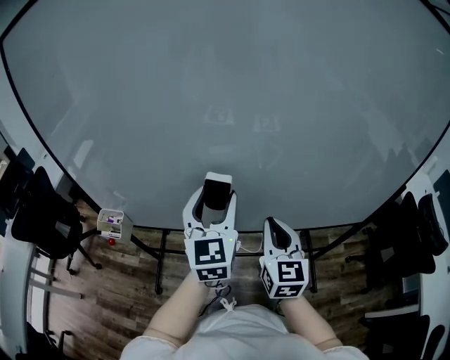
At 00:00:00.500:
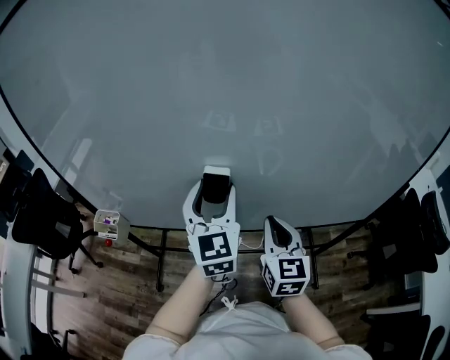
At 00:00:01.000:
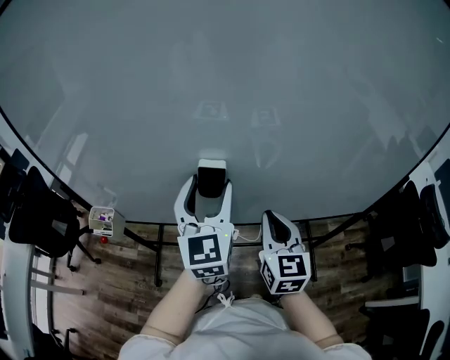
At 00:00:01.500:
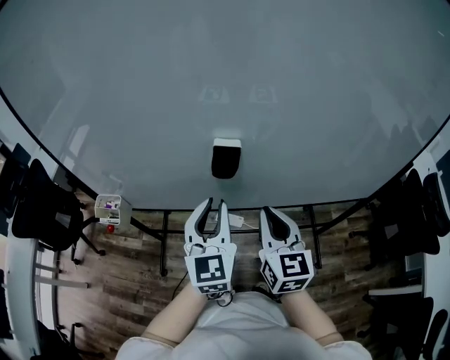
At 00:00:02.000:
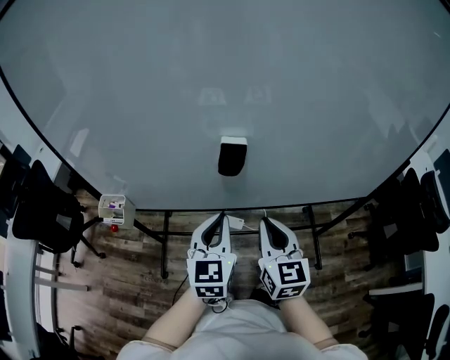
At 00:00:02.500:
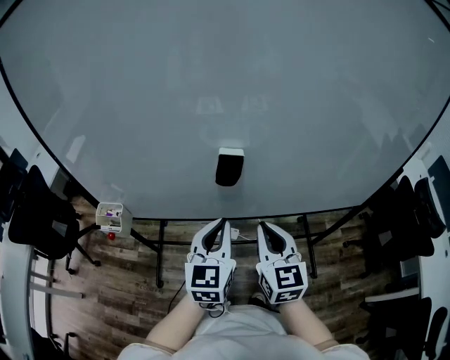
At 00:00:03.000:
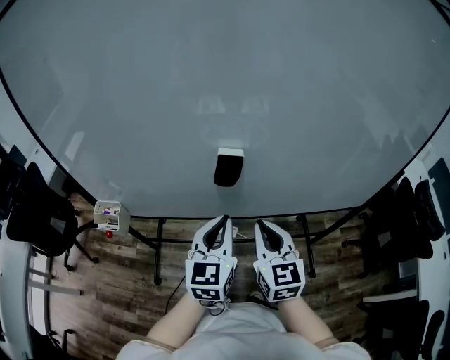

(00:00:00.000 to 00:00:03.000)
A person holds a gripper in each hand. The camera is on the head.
00:00:00.000 - 00:00:01.500: The left gripper goes approximately 10 cm downward and backward, and closes.
00:00:01.500 - 00:00:03.000: There are only small adjustments of the grippers.

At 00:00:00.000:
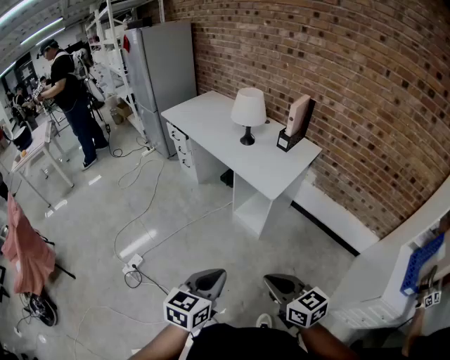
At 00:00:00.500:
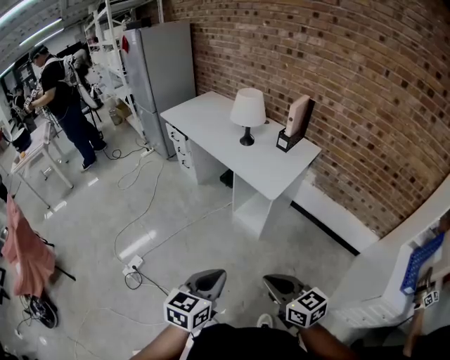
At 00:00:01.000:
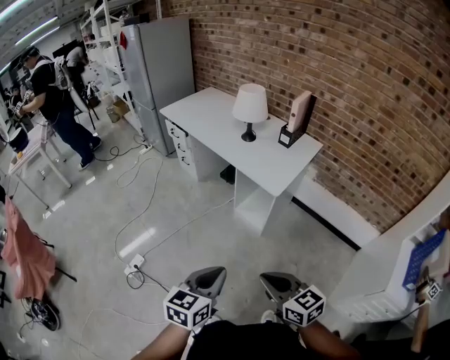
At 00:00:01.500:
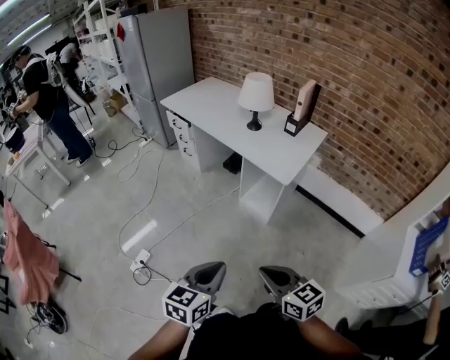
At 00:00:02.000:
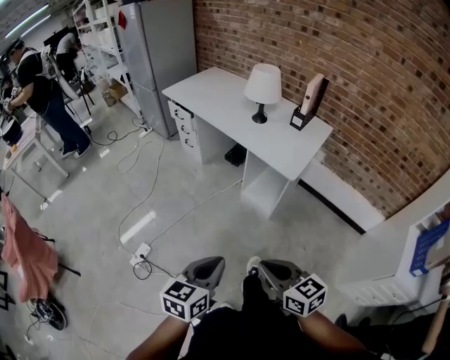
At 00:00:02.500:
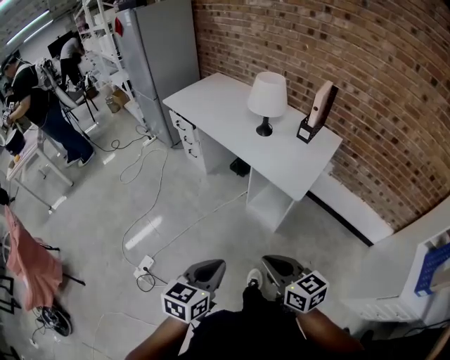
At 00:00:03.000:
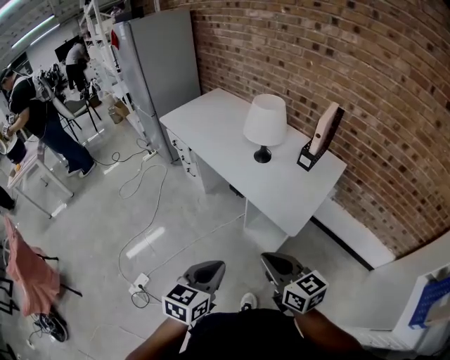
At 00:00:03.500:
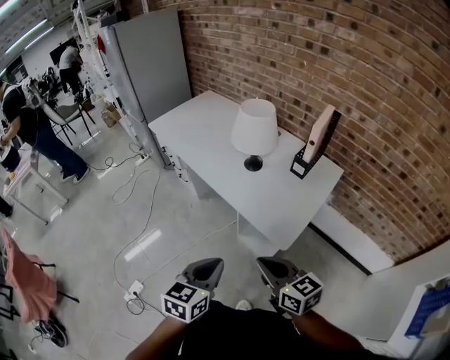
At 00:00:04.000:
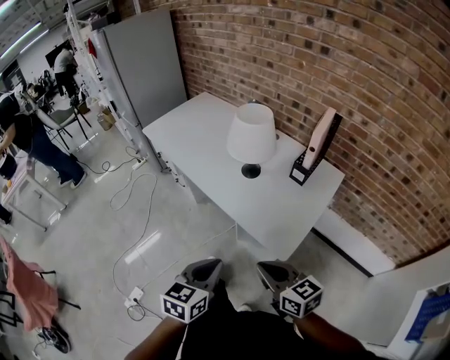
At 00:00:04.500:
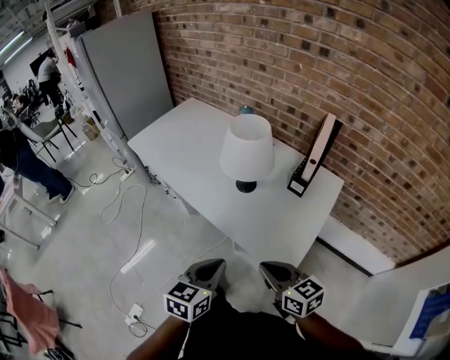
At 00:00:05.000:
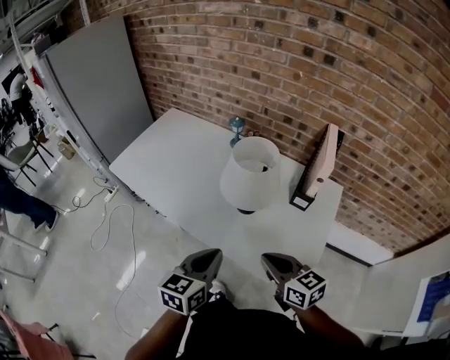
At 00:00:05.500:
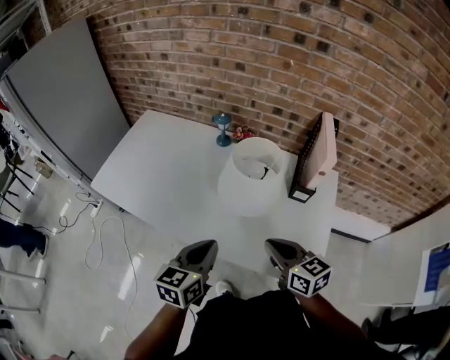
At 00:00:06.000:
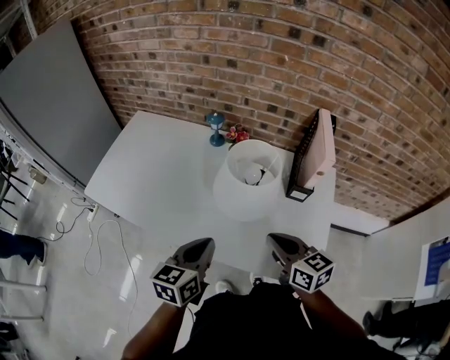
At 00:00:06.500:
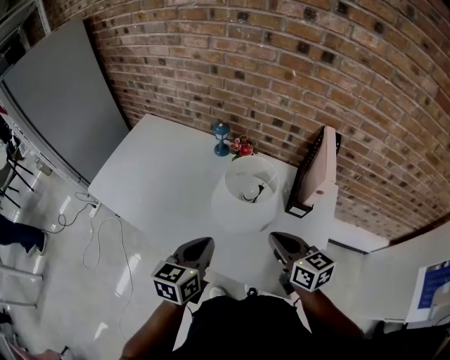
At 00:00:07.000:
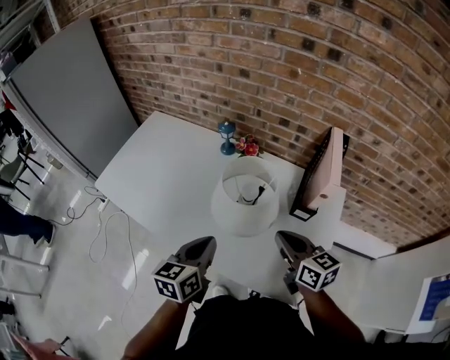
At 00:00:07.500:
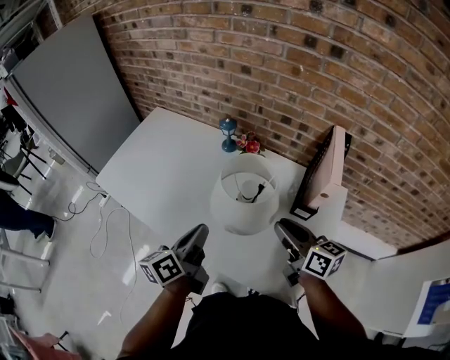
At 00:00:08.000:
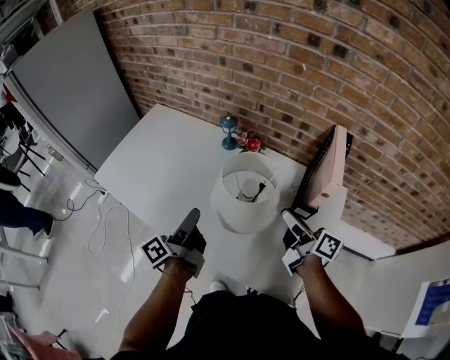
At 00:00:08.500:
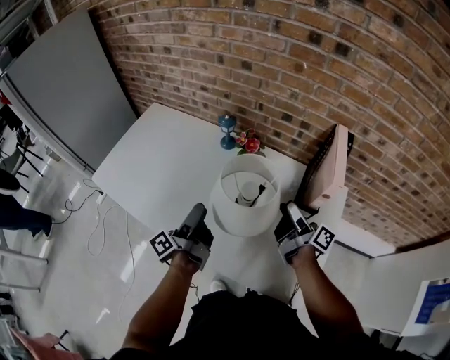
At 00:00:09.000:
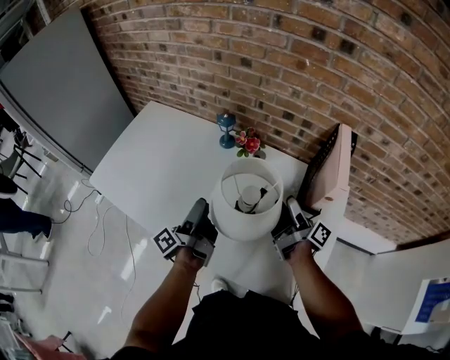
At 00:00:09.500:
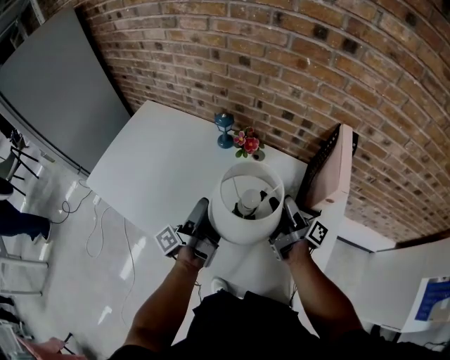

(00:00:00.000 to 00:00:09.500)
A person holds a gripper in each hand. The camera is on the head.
00:00:00.000 - 00:00:02.000: Both grippers move to the left, approximately 10 cm.
00:00:02.000 - 00:00:04.000: Both grippers travel together forward, some 35 cm.
00:00:04.000 - 00:00:05.500: The grippers both shift forward by about 30 cm. The right gripper swivels approximately 30 degrees.
00:00:05.500 - 00:00:07.500: The left gripper goes about 10 cm forward, and swivels about 40 degrees; the right gripper is displaced forward and to the right by approximately 15 cm.
00:00:07.500 - 00:00:09.500: Both grippers move forward, about 10 cm. The right gripper rolls clockwise, seen from behind, by some 50 degrees, and opens up. The left gripper twists some 40 degrees counterclockwise, seen from behind, and opens up.

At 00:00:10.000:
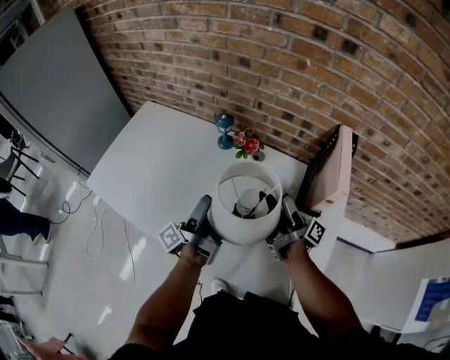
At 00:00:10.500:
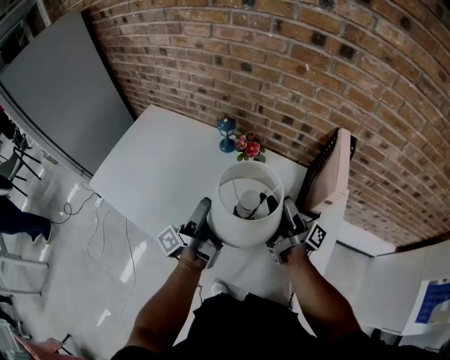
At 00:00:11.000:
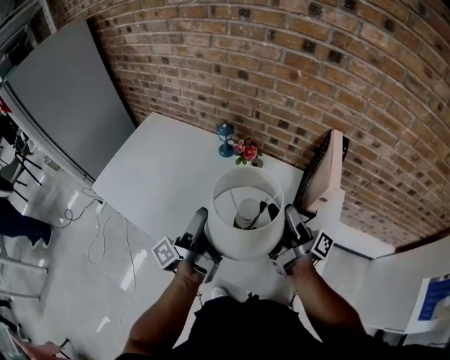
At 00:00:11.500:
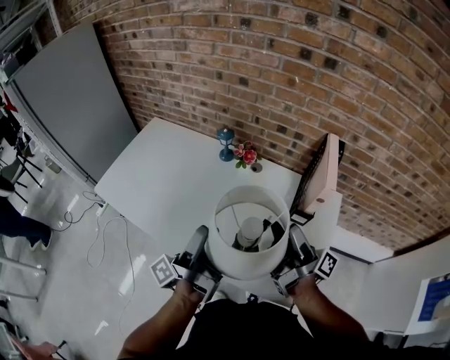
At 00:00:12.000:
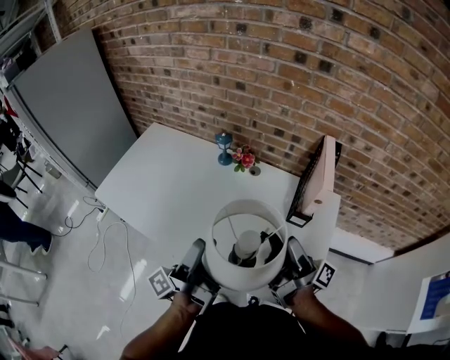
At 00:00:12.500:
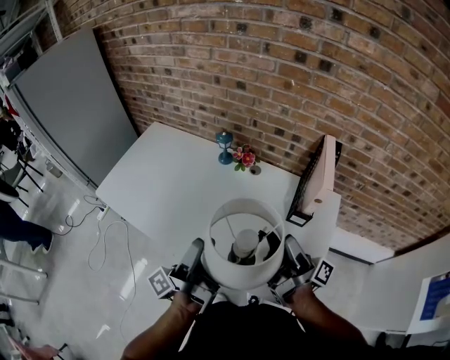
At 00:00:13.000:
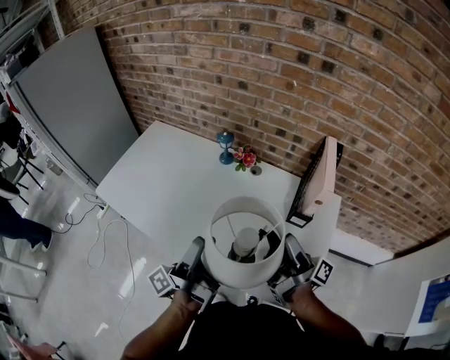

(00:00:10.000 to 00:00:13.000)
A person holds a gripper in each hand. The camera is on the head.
00:00:10.000 - 00:00:11.500: The grippers both shift backward and upward by some 15 cm.
00:00:11.500 - 00:00:13.000: The grippers stay close to where they were, moving slightly.

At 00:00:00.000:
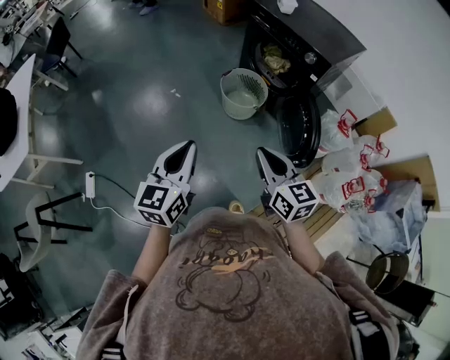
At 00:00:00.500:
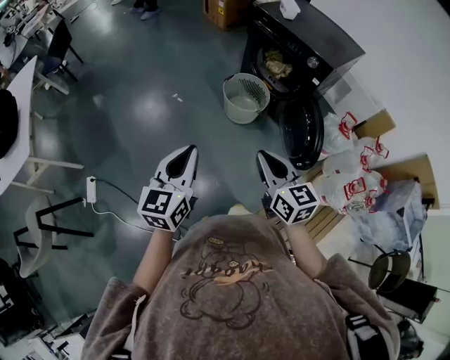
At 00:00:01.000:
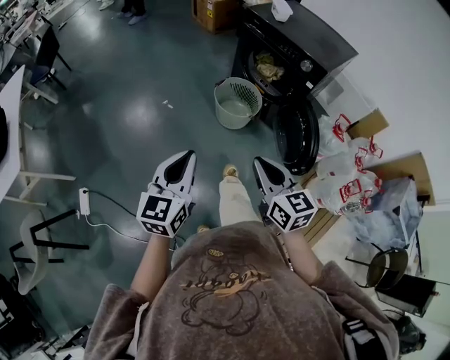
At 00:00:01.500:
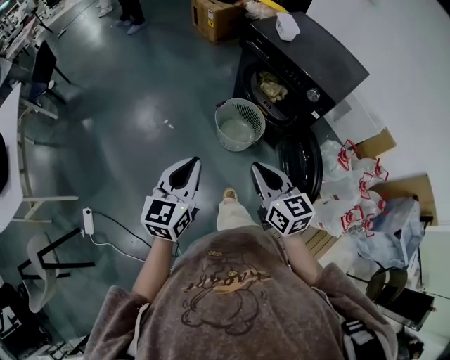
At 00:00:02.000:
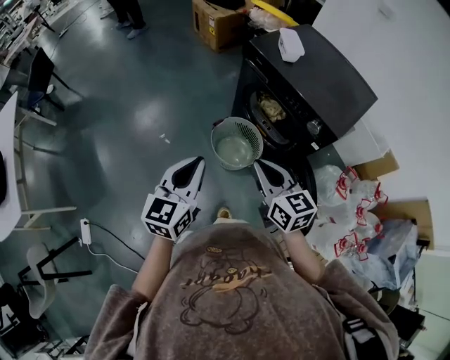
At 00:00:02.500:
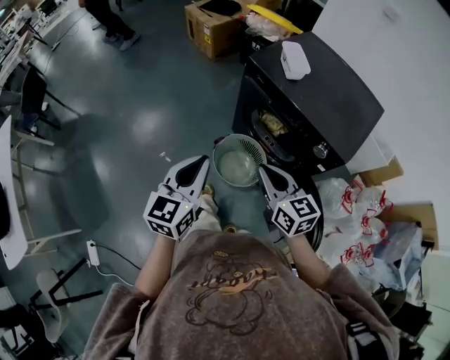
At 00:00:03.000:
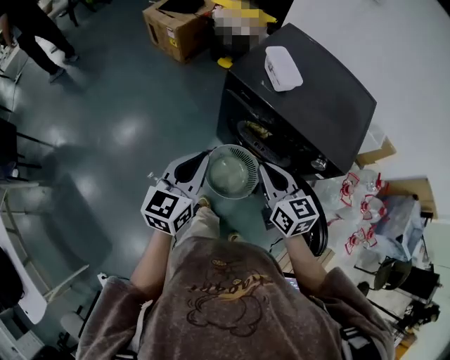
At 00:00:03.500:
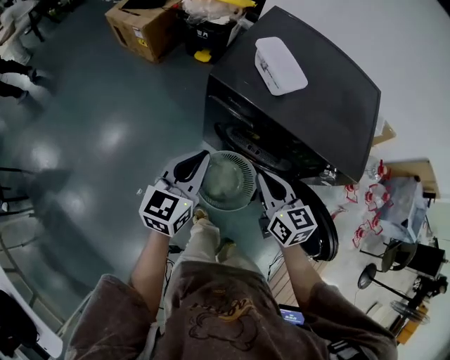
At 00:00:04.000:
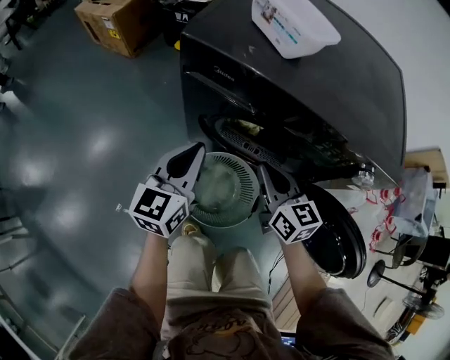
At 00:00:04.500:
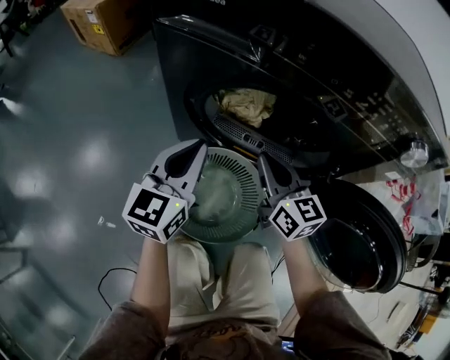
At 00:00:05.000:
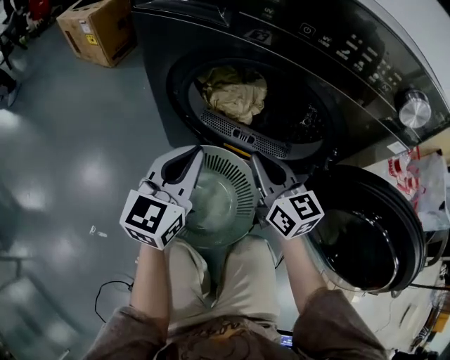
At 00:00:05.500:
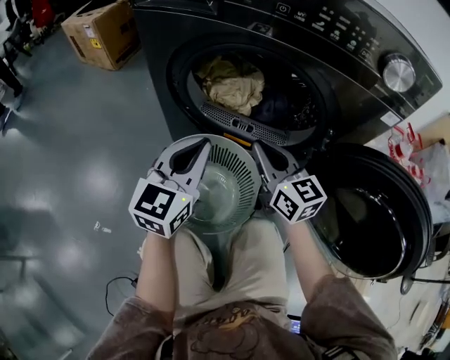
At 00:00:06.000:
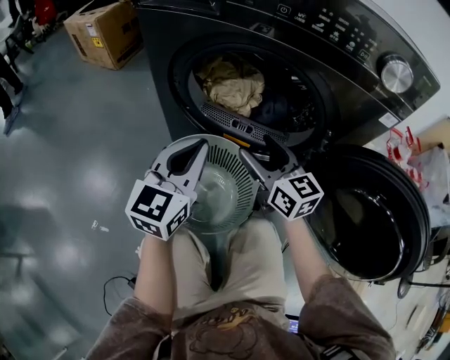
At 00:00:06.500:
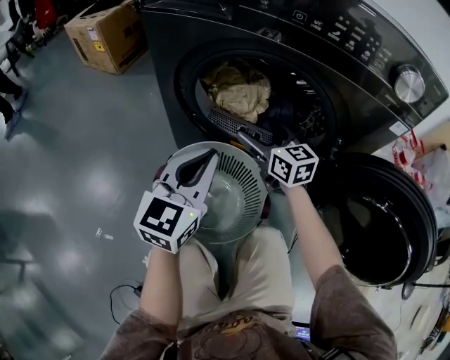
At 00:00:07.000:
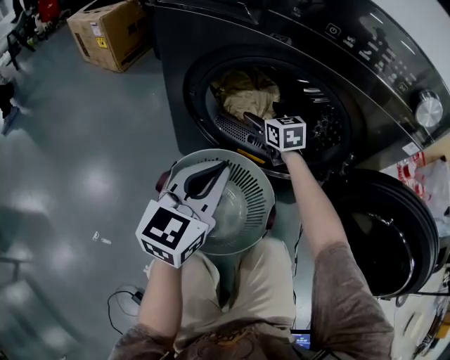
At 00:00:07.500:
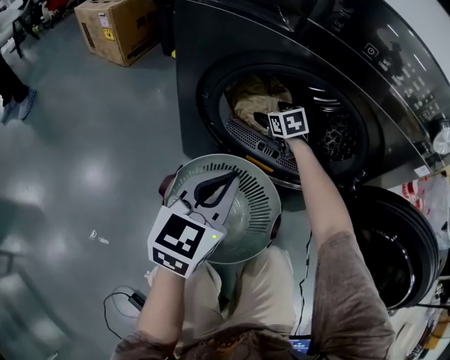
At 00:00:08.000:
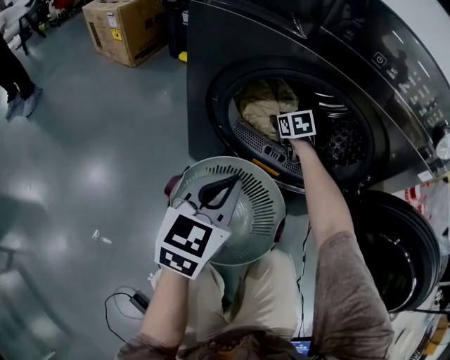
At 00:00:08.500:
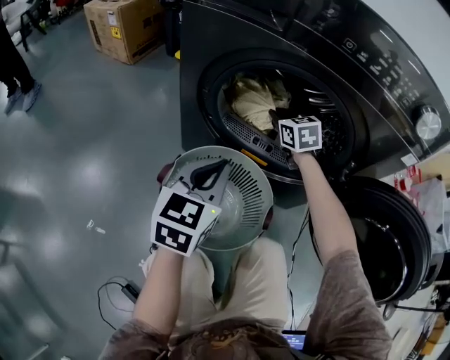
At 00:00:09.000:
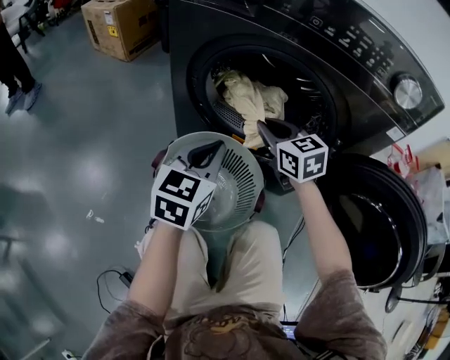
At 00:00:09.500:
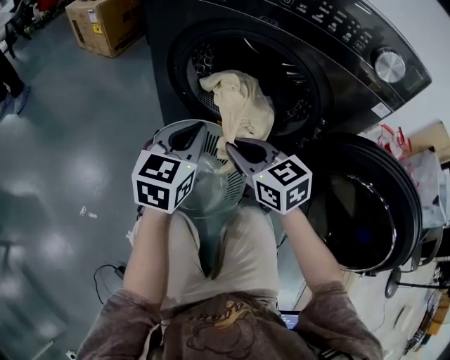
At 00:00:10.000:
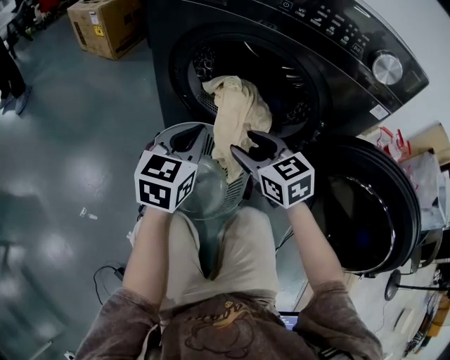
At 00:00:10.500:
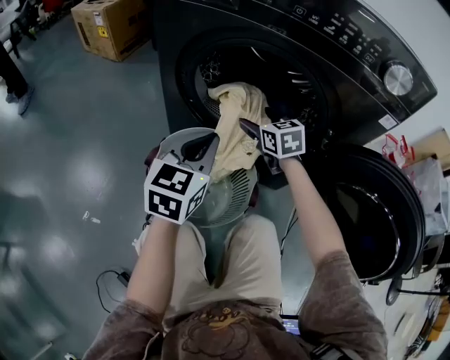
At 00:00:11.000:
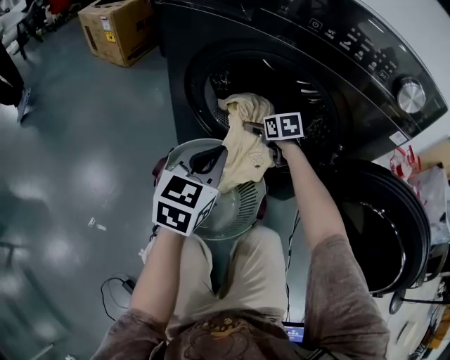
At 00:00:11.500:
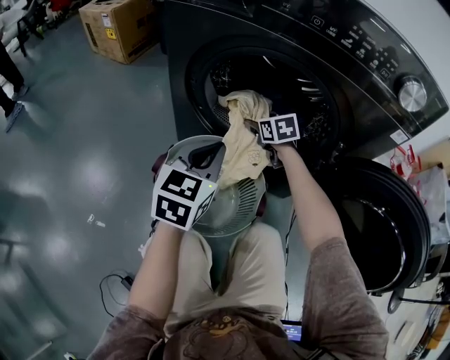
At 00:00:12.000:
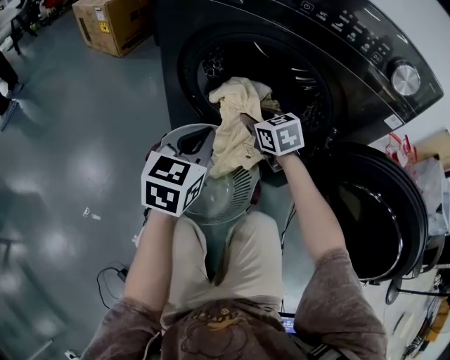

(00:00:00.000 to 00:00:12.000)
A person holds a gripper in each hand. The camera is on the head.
00:00:00.000 - 00:00:02.000: Both grippers move forward, approximately 35 cm.
00:00:02.000 - 00:00:04.000: The left gripper moves roughly 50 cm, and turns by roughly 30 degrees; the right gripper changes place by roughly 40 cm, and swivels approximately 30 degrees.
00:00:04.000 - 00:00:06.000: The left gripper is displaced downward, to the right and backward by approximately 20 cm. Meanwhile the right gripper heads downward, covering approximately 20 cm, and opens its fingers.
00:00:06.000 - 00:00:08.000: The right gripper shifts roughly 30 cm forward and downward, angles its fingers downward, by roughly 40 degrees, and closes up.
00:00:08.000 - 00:00:10.000: The right gripper heads backward and upward, covering roughly 35 cm, and swivels roughly 30 degrees.
00:00:10.000 - 00:00:12.000: The right gripper shifts some 15 cm forward and downward, and opens and closes again.
